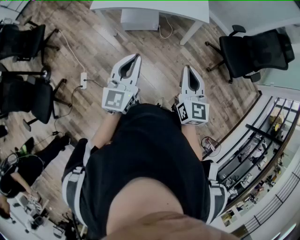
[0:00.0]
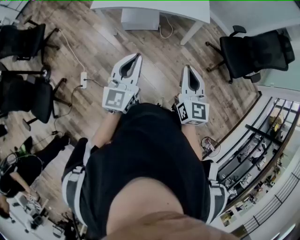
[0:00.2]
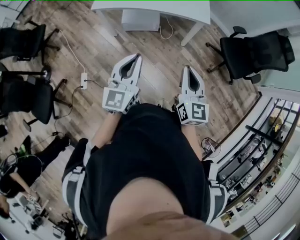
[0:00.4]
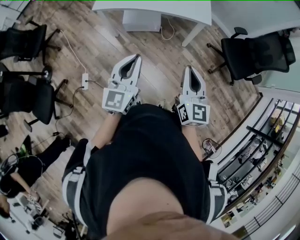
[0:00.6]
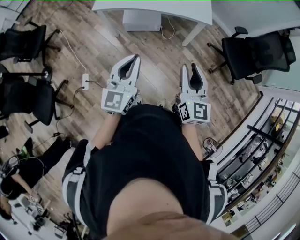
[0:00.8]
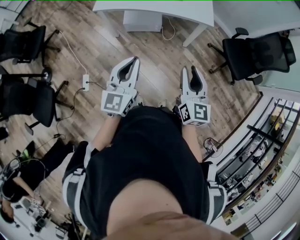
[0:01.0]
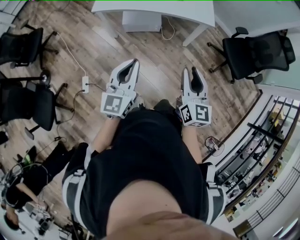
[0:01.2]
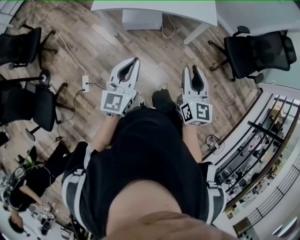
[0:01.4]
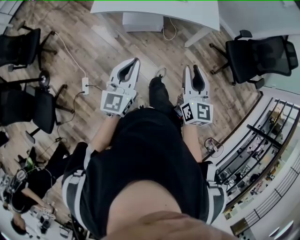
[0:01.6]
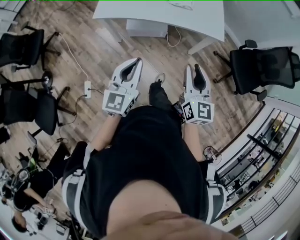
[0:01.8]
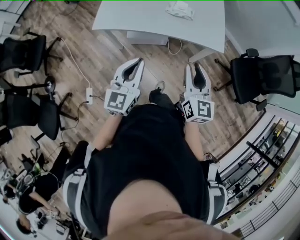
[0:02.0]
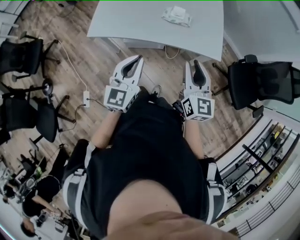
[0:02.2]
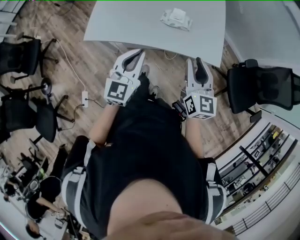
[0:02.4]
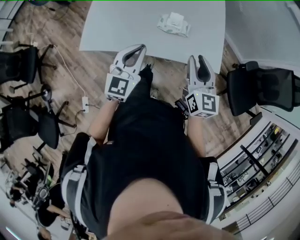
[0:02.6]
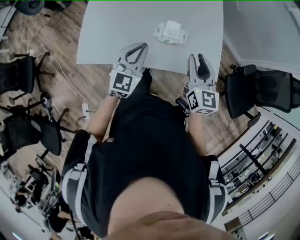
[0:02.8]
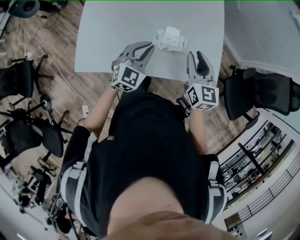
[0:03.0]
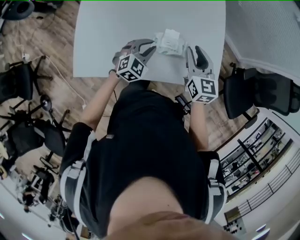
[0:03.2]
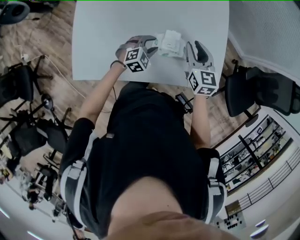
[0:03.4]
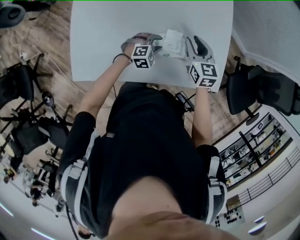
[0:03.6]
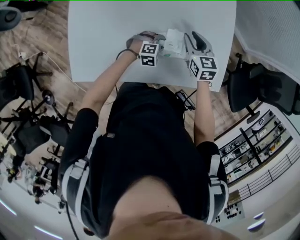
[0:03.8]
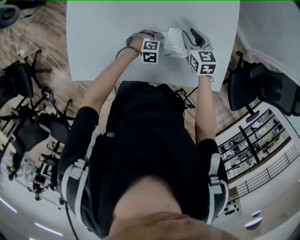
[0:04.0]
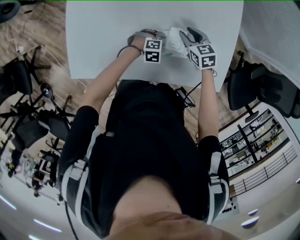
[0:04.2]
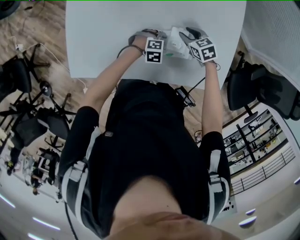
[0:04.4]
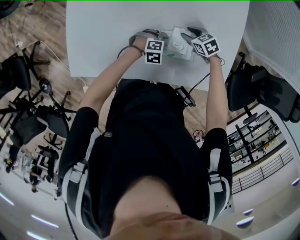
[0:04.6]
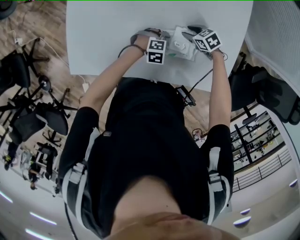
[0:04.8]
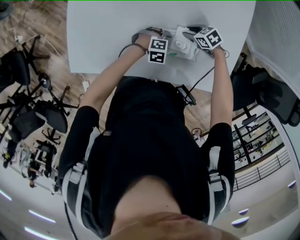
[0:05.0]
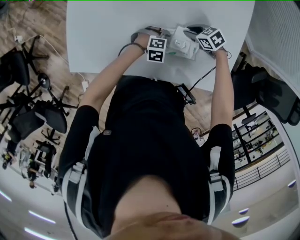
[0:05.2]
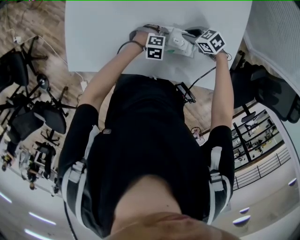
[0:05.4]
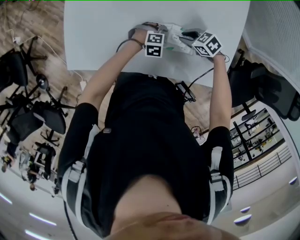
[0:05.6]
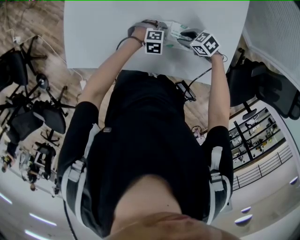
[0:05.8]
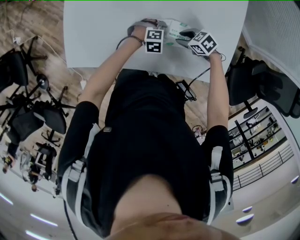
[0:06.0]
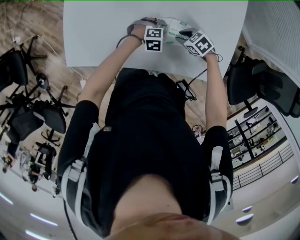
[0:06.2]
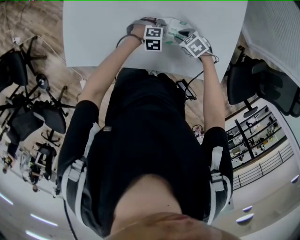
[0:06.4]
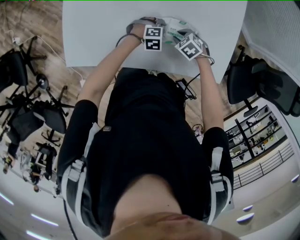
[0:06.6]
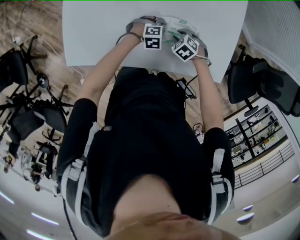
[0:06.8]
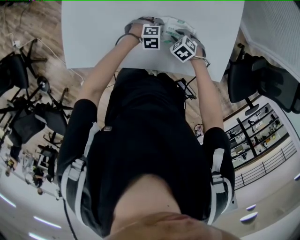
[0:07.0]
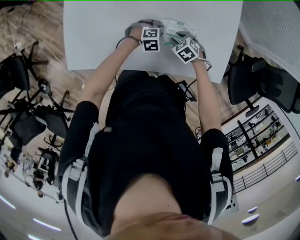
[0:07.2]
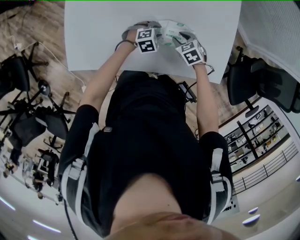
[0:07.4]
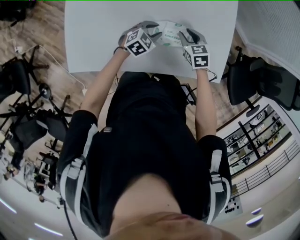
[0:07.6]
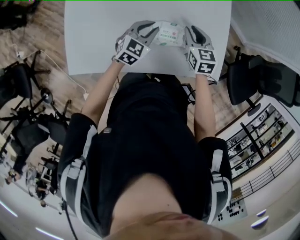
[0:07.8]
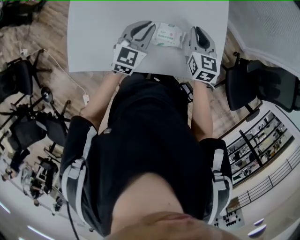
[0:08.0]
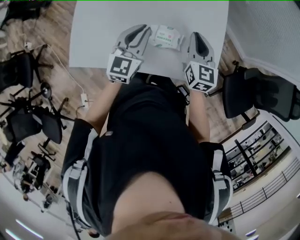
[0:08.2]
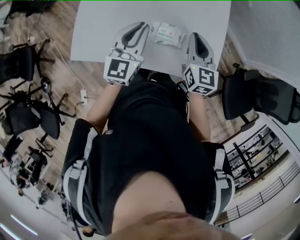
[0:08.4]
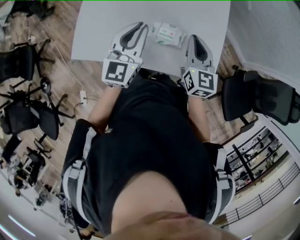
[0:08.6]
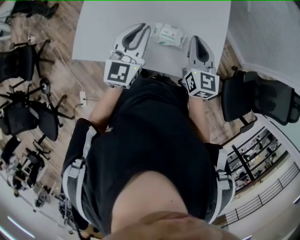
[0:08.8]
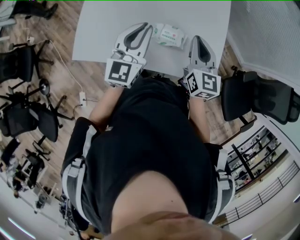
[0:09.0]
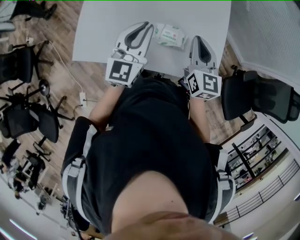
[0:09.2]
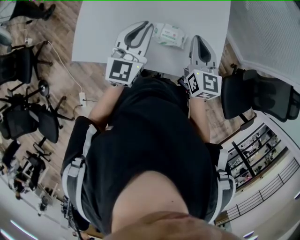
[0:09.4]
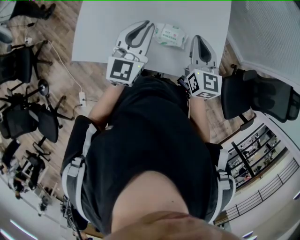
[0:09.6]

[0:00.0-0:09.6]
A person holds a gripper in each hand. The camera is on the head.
0:00.0 to 0:01.6: The right gripper is displaced forward and to the left by approximately 15 cm, and opens its fingers, while the left gripper shifts approximately 20 cm to the left, forward and downward.
0:01.6 to 0:03.2: The two grippers travel together, forward, about 80 cm. The left gripper tips its fingers downward by roughly 30 degrees.
0:03.2 to 0:04.8: Both grippers travel together downward, about 25 cm. The left gripper turns by roughly 40 degrees, and opens its fingers. The right gripper angles its fingers downward, by about 40 degrees.
0:04.8 to 0:06.4: The right gripper ends up roughly 10 cm from where it was.
0:06.4 to 0:08.0: The grippers both shift upward by some 30 cm. The right gripper tips its fingers upward by approximately 40 degrees; the left gripper tilts its fingers roughly 40 degrees upward, and closes its fingers.
0:08.0 to 0:09.6: The grippers both shift upward and backward by some 15 cm. The left gripper turns by some 20 degrees.

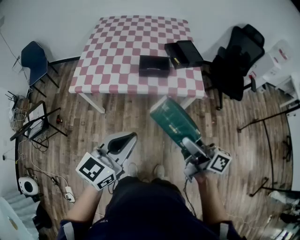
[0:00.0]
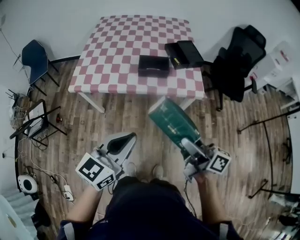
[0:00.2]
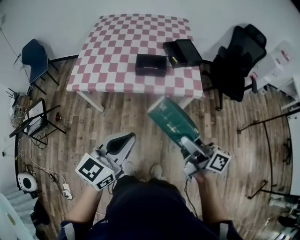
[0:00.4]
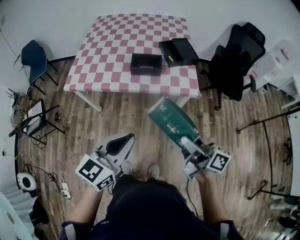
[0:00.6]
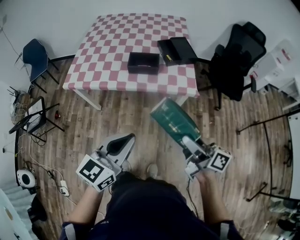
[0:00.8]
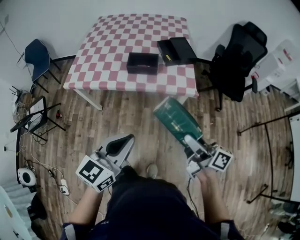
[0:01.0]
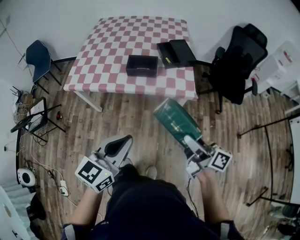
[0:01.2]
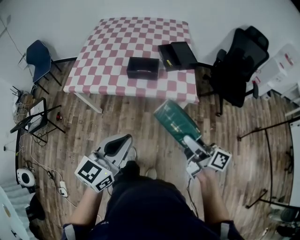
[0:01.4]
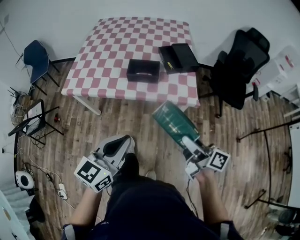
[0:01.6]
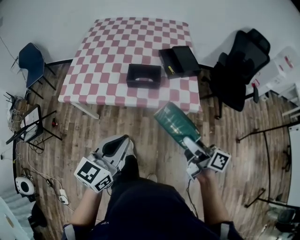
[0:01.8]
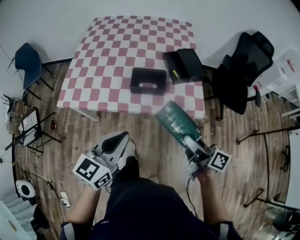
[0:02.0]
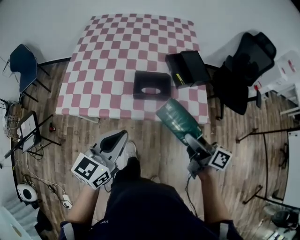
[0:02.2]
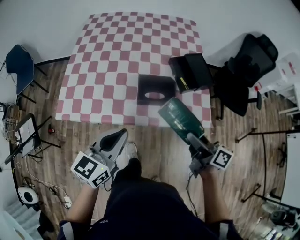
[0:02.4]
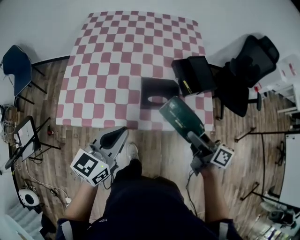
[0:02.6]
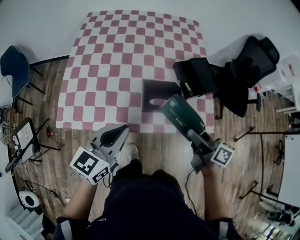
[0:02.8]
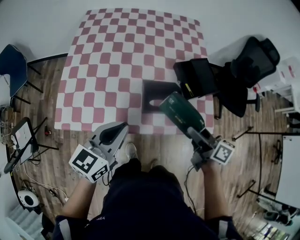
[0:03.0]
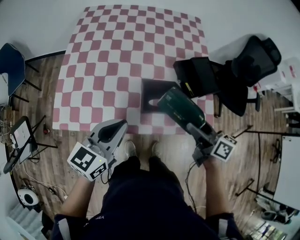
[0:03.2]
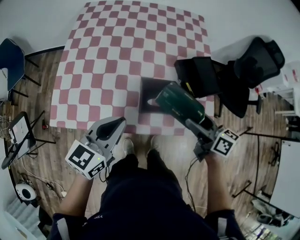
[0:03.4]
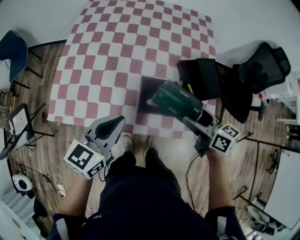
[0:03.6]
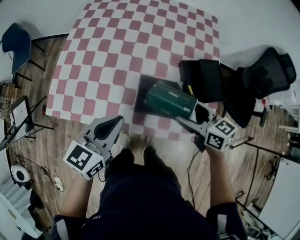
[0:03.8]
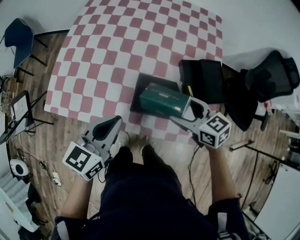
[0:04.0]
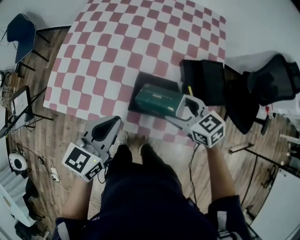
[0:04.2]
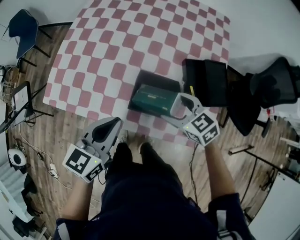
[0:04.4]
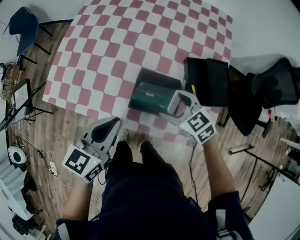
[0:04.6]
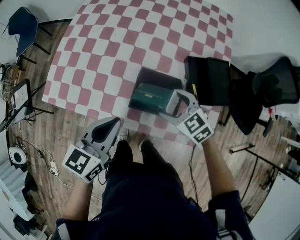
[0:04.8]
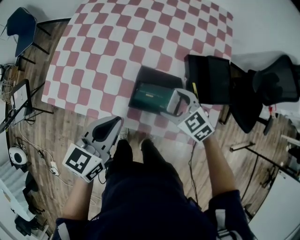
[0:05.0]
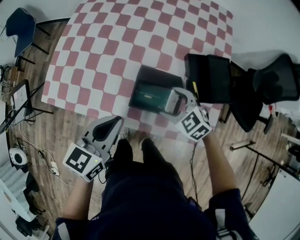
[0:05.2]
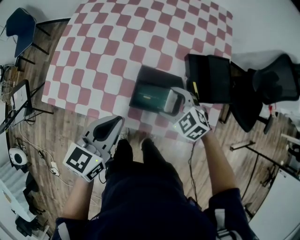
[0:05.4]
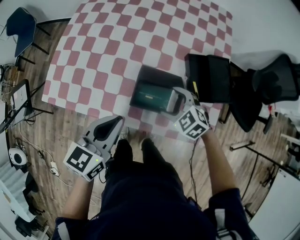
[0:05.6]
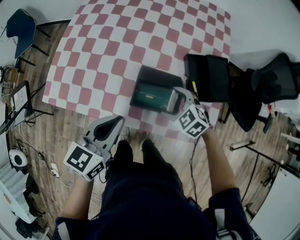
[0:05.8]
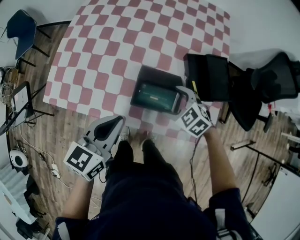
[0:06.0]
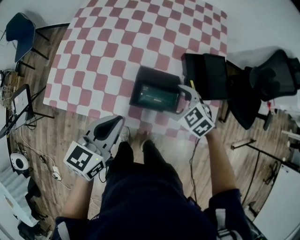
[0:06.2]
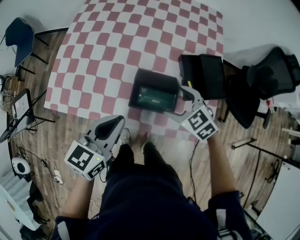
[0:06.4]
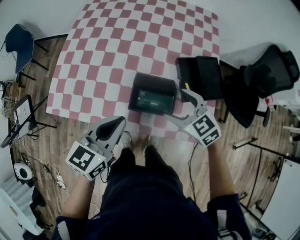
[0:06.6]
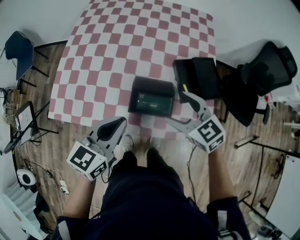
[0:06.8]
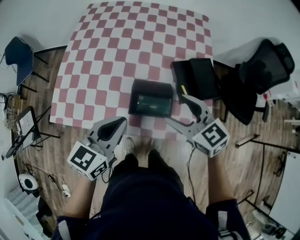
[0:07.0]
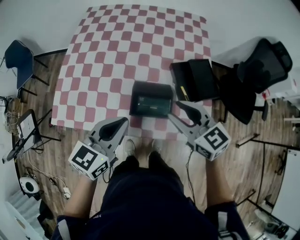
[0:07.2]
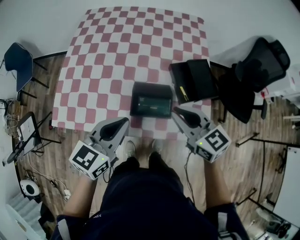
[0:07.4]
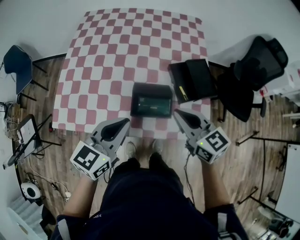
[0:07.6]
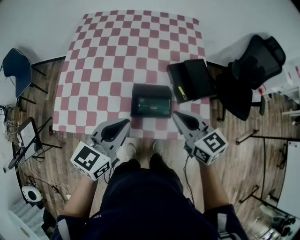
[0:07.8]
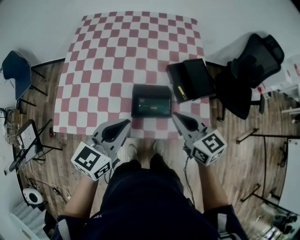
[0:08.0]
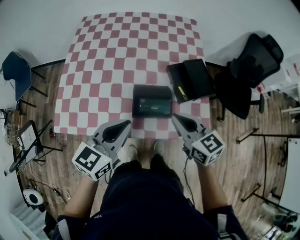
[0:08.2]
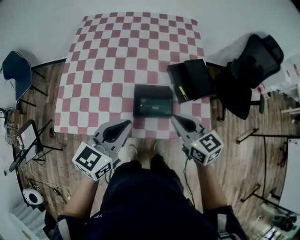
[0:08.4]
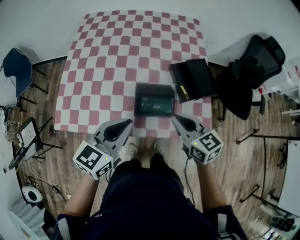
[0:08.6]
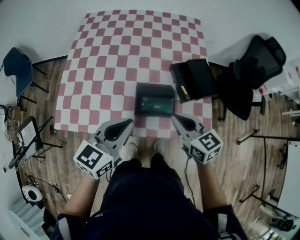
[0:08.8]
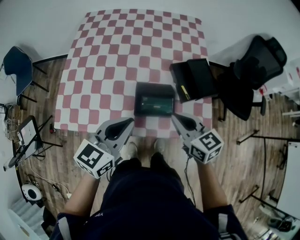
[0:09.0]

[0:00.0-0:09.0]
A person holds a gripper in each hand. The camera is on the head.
0:00.0 to 0:01.6: The right gripper goes some 15 cm to the right, forward and downward, while the left gripper shifts some 10 cm to the right.
0:01.6 to 0:03.0: The grippers both shift forward and to the left by some 35 cm.
0:03.0 to 0:04.4: The left gripper moves to the right and downward, approximately 10 cm, and changes its angle by some 20 degrees. The right gripper goes approximately 15 cm forward and downward, and turns by approximately 70 degrees.
0:04.4 to 0:06.0: The right gripper moves downward, roughly 5 cm, and rotates approximately 20 degrees.
0:06.0 to 0:07.6: The right gripper travels upward by some 20 cm, tips its fingers upward by about 40 degrees, and closes, while the left gripper goes some 5 cm upward.
0:07.6 to 0:09.0: The grippers make only small movements.

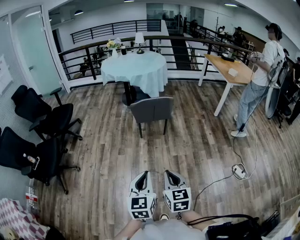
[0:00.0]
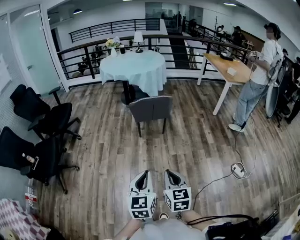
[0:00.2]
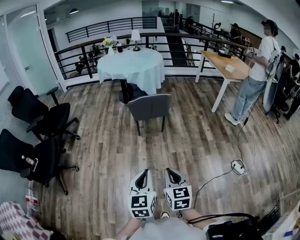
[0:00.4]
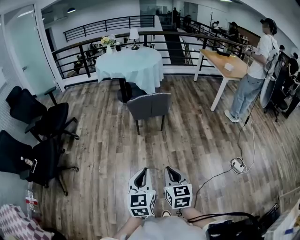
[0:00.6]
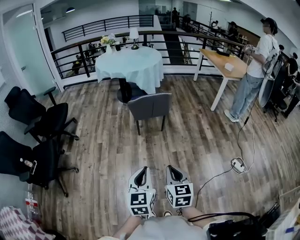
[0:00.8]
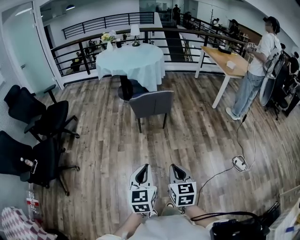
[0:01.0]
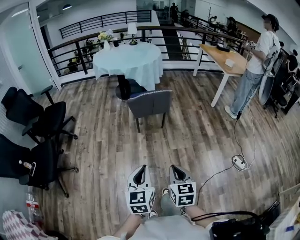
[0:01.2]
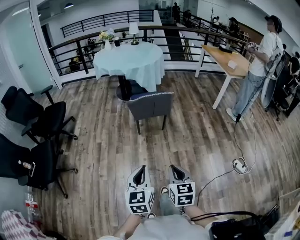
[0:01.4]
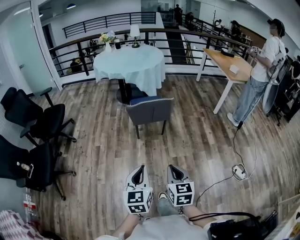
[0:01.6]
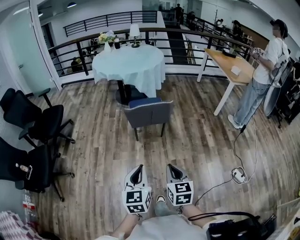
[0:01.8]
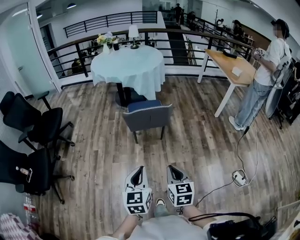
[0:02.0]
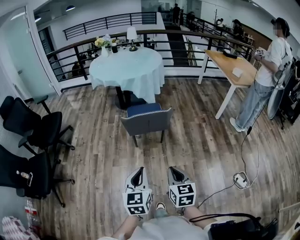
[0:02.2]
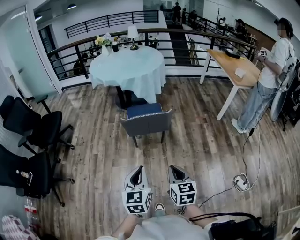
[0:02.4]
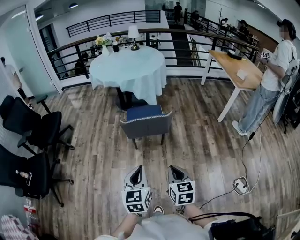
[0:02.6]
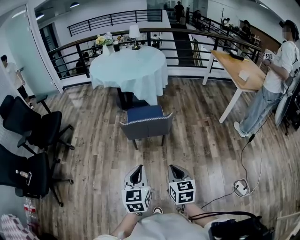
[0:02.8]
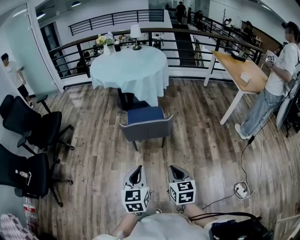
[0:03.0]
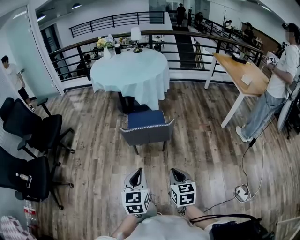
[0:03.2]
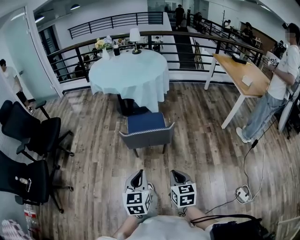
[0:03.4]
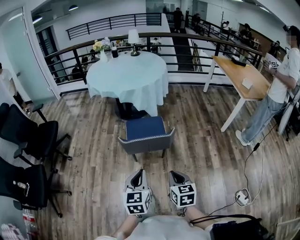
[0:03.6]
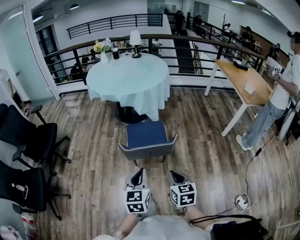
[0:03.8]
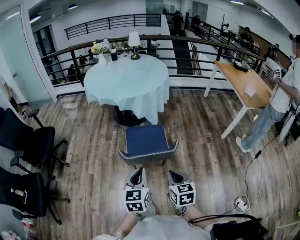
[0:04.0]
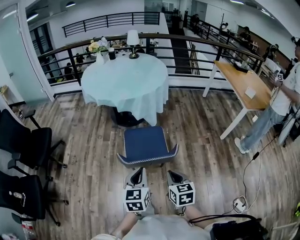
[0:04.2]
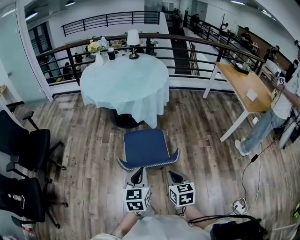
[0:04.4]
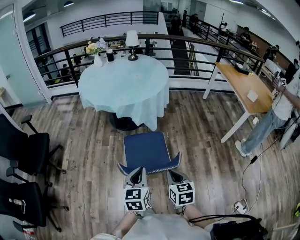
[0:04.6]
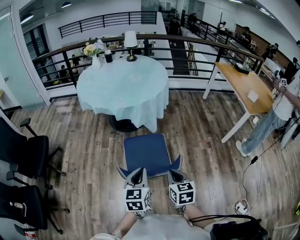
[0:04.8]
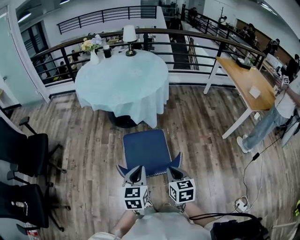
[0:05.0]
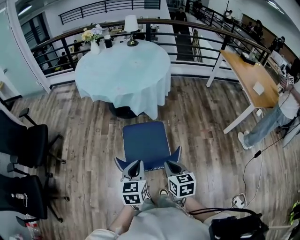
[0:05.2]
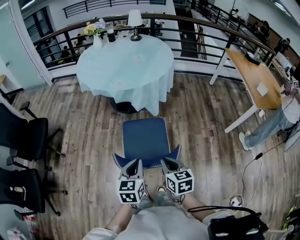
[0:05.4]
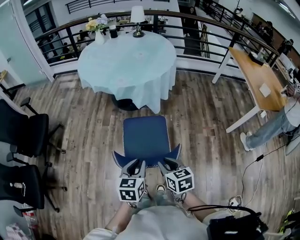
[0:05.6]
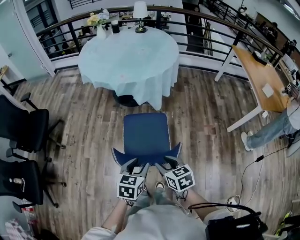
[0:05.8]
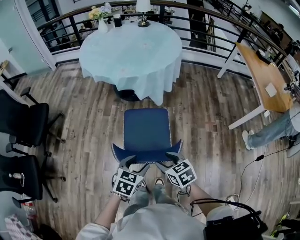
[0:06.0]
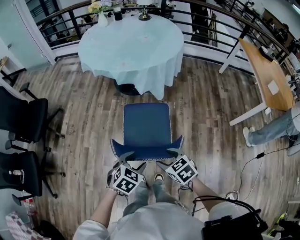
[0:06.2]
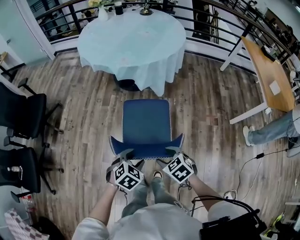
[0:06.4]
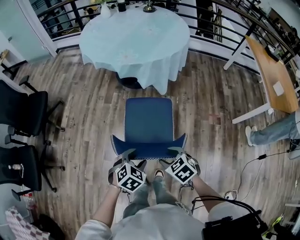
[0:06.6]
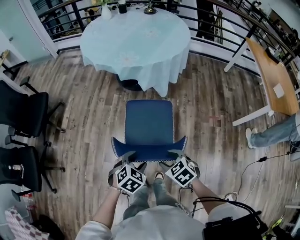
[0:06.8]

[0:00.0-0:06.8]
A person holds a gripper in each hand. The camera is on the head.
0:00.0 to 0:01.4: The two grippers go about 10 cm forward.
0:01.4 to 0:02.8: Both grippers move forward and to the right, approximately 25 cm.
0:02.8 to 0:04.0: The grippers both shift forward by approximately 20 cm.
0:04.0 to 0:05.4: The grippers both shift forward by some 15 cm.
0:05.4 to 0:06.8: The two grippers go about 10 cm downward. The left gripper angles its fingers downward, by roughly 30 degrees, and opens up. The right gripper changes its angle by approximately 50 degrees, and opens its fingers.
